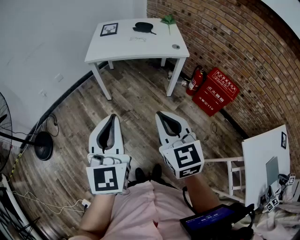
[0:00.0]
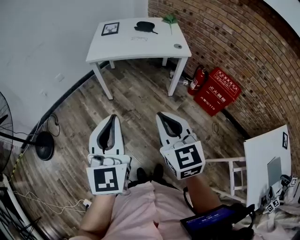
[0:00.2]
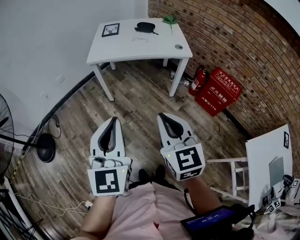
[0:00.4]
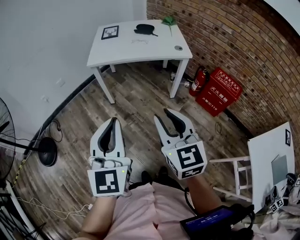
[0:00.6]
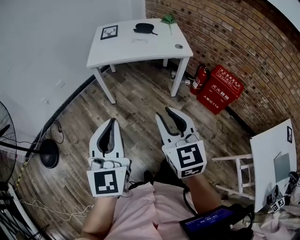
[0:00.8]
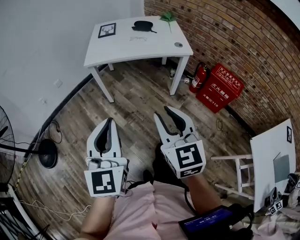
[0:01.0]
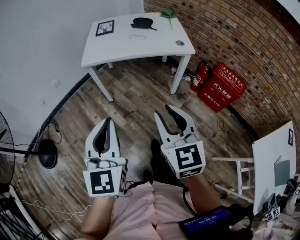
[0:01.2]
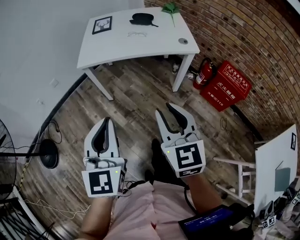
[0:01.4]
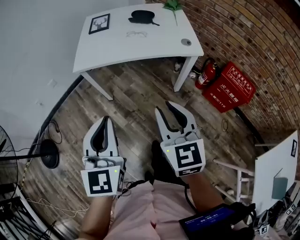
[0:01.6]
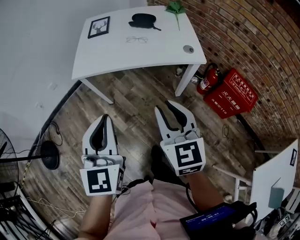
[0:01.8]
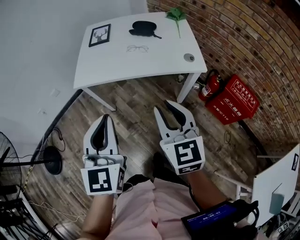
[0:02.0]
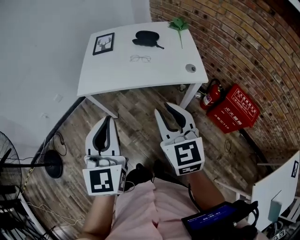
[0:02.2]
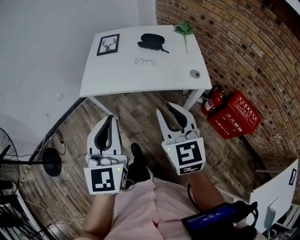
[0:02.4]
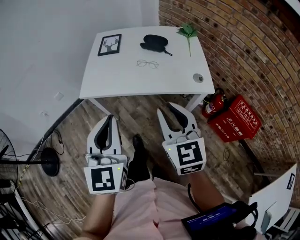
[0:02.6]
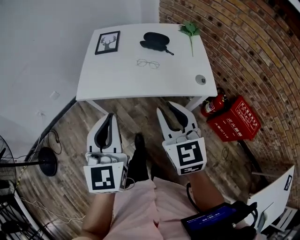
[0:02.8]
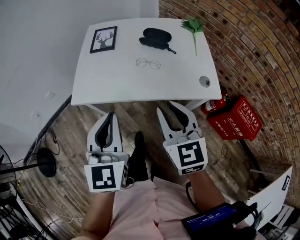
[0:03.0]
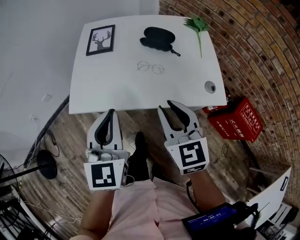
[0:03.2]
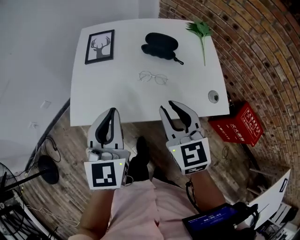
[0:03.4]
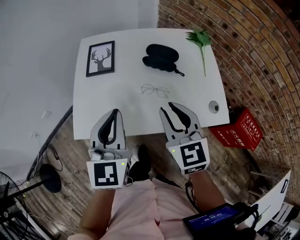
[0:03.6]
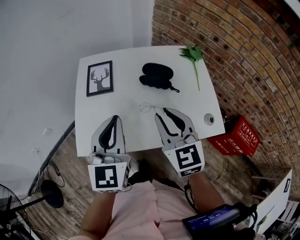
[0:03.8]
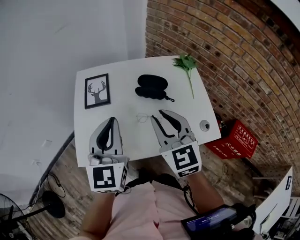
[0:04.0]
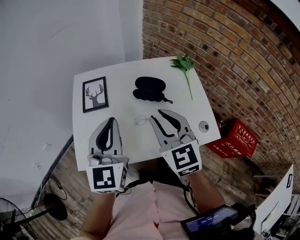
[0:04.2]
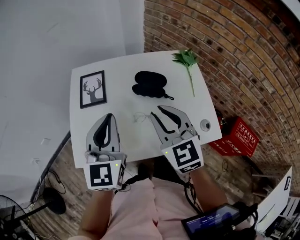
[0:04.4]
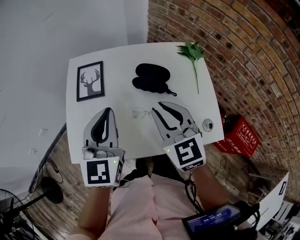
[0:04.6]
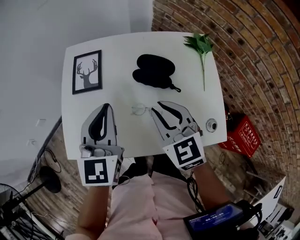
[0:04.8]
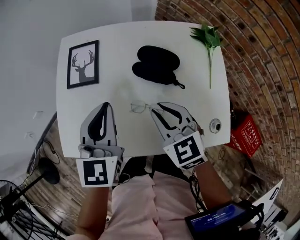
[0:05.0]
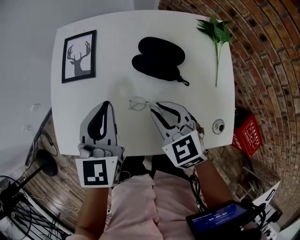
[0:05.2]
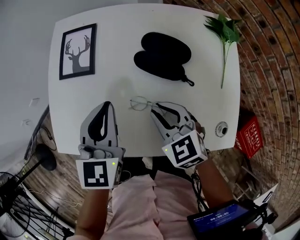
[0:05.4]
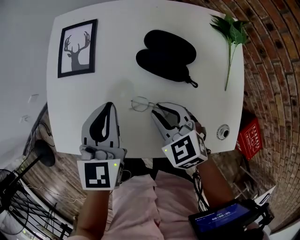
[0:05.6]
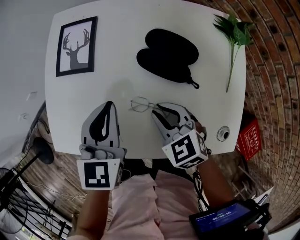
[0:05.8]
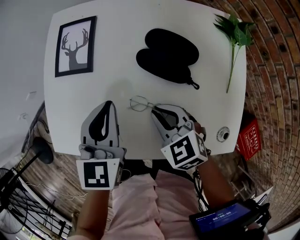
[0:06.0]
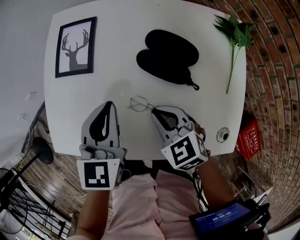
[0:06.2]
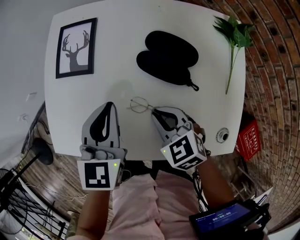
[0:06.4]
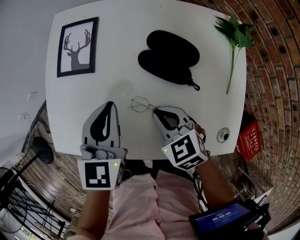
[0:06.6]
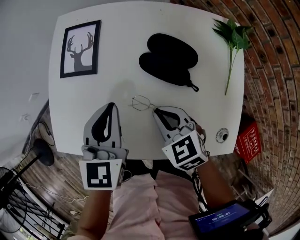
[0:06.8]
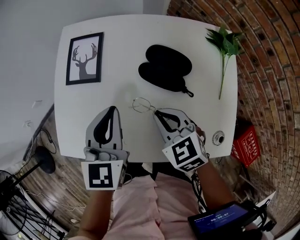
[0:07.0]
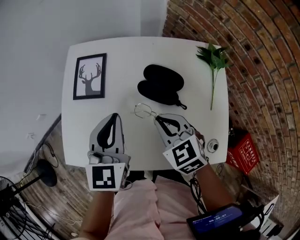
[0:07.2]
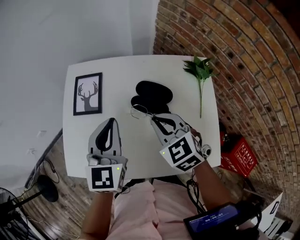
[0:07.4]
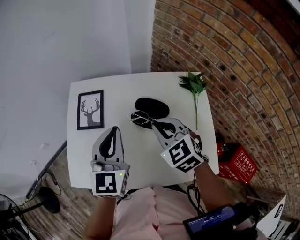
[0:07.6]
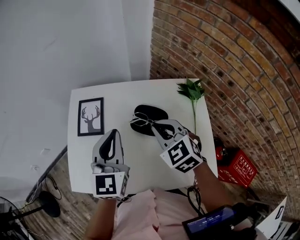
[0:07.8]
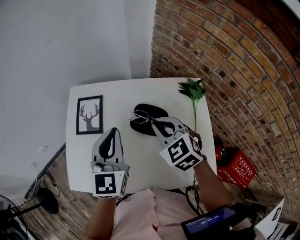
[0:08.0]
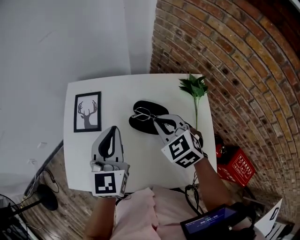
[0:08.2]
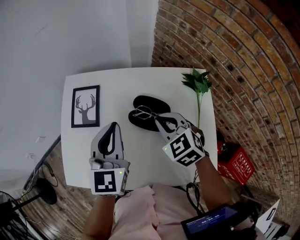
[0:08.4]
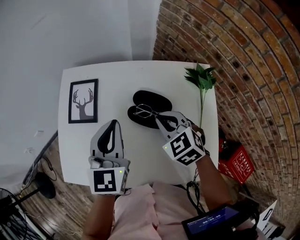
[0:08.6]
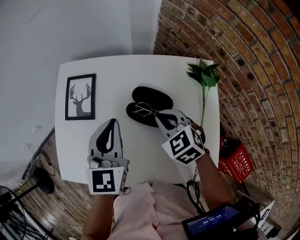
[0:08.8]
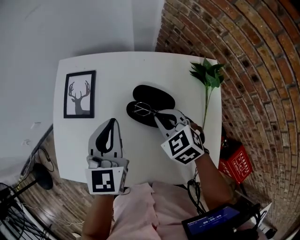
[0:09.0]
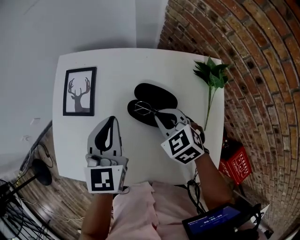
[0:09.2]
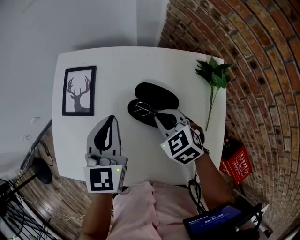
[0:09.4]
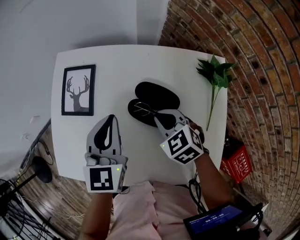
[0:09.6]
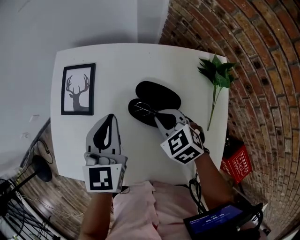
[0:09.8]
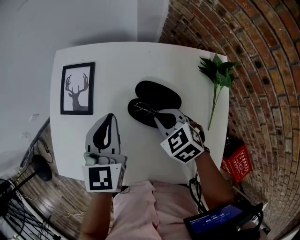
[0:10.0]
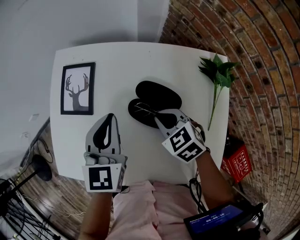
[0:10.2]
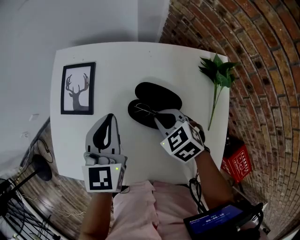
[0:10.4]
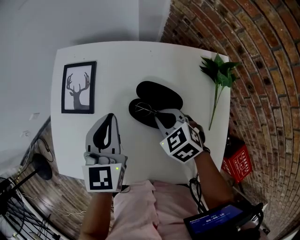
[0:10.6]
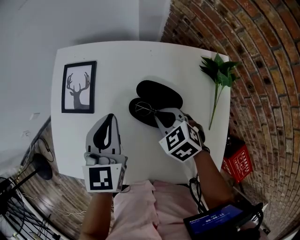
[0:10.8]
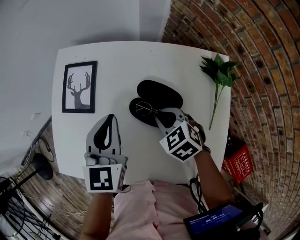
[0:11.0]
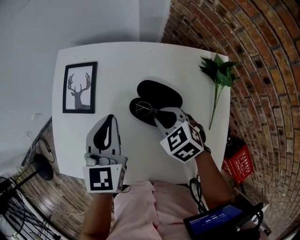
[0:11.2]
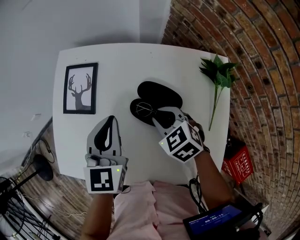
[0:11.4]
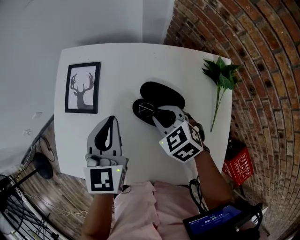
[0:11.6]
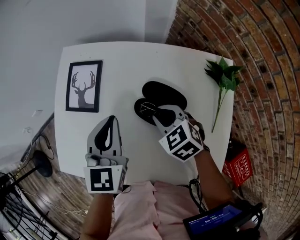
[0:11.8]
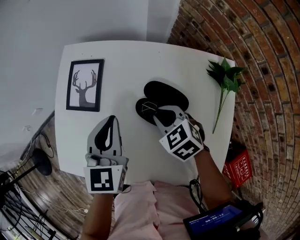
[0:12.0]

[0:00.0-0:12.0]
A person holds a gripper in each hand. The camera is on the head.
0:00.0 to 0:01.6: Both grippers move forward, roughly 20 cm. The right gripper opens its fingers.
0:01.6 to 0:03.0: The grippers both shift forward by approximately 25 cm.
0:03.0 to 0:04.4: Both grippers travel together forward, about 25 cm.
0:04.4 to 0:06.0: The left gripper shifts about 20 cm downward and forward, and rotates approximately 20 degrees. The right gripper goes roughly 25 cm downward, and rotates approximately 40 degrees.
0:06.0 to 0:07.6: The right gripper travels upward and forward by roughly 15 cm; the left gripper shifts about 15 cm upward.
0:07.6 to 0:09.0: The two grippers go some 10 cm downward.
0:09.0 to 0:12.0: The grippers stay close to where they were, moving slightly.

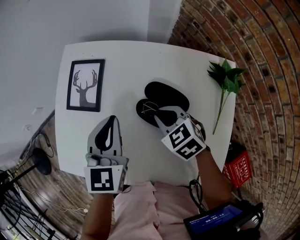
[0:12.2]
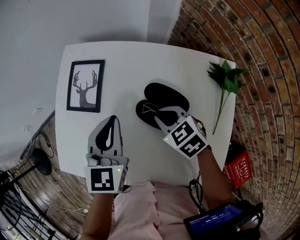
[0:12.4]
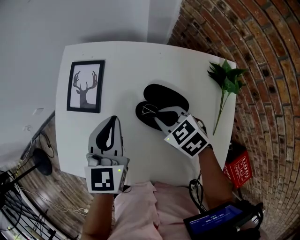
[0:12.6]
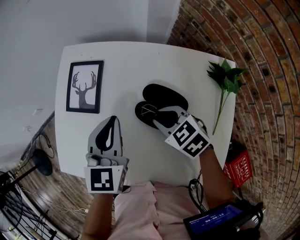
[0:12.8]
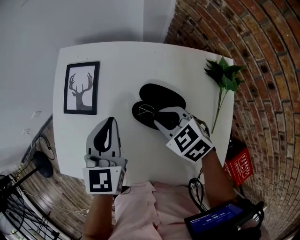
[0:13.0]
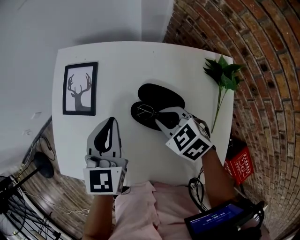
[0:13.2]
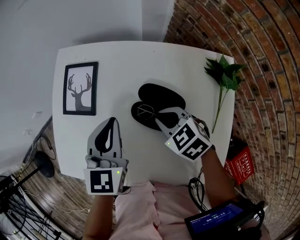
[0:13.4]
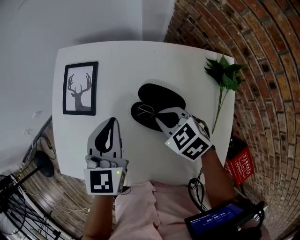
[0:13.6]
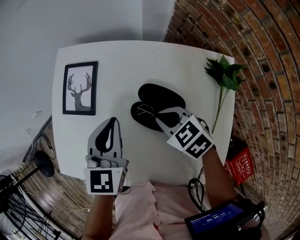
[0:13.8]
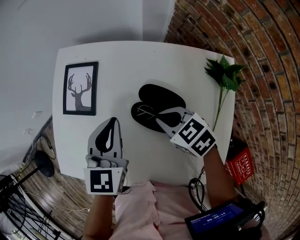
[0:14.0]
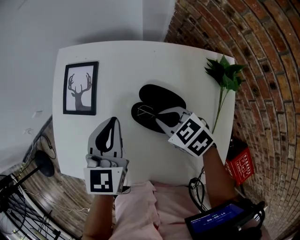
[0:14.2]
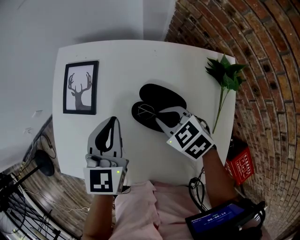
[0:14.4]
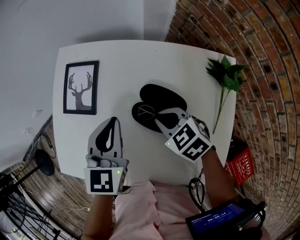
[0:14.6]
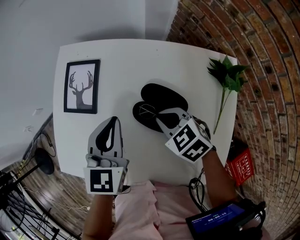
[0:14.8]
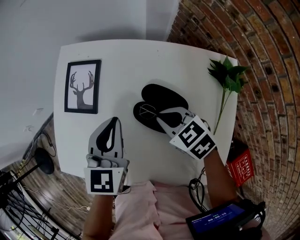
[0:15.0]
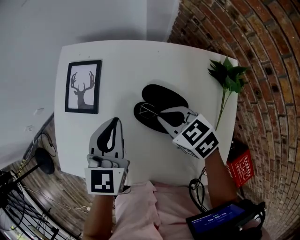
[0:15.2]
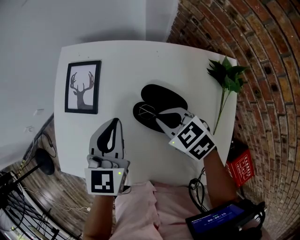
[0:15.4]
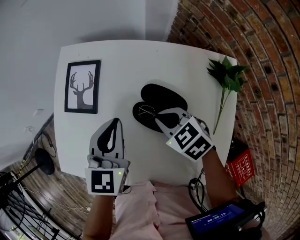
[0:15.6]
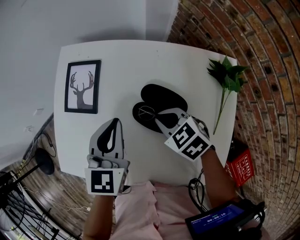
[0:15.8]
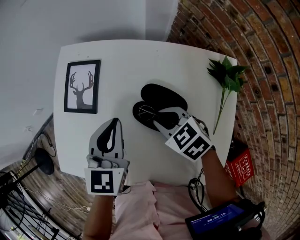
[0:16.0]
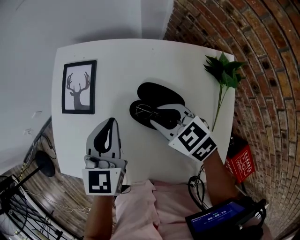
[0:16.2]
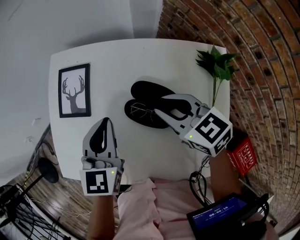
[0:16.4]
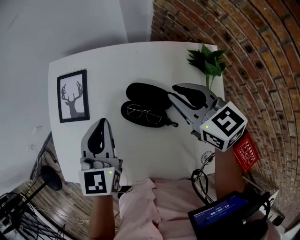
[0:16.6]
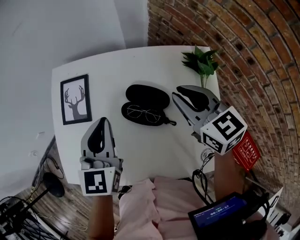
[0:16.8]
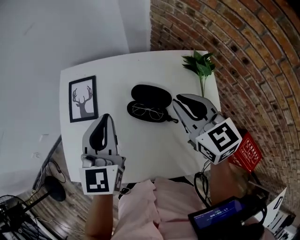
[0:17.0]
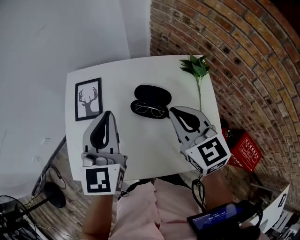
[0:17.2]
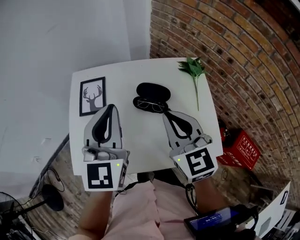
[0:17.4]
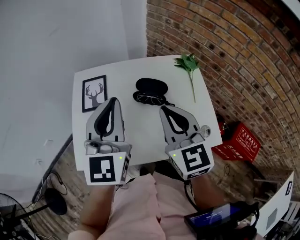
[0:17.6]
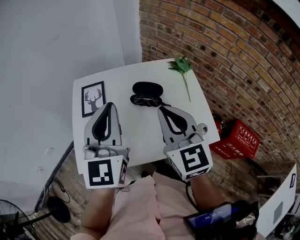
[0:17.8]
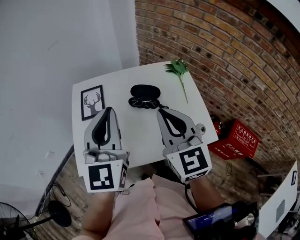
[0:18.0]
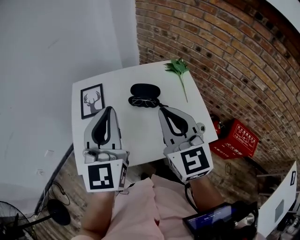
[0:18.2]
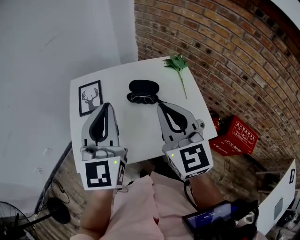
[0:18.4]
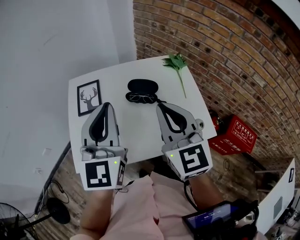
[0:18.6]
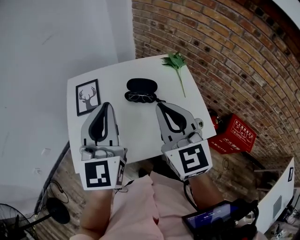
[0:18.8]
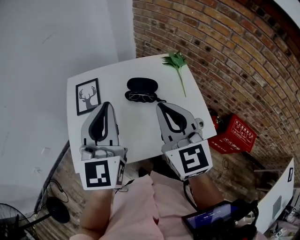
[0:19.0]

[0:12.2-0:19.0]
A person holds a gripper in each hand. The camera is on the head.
0:12.2 to 0:15.0: The grippers move only a little.
0:15.0 to 0:16.2: The right gripper opens.
0:16.2 to 0:17.6: The grippers both shift upward by some 20 cm. The left gripper changes its angle by approximately 30 degrees. Meanwhile the right gripper tips its fingers upward by about 30 degrees, and closes up.
0:17.6 to 0:19.0: The grippers make only small movements.

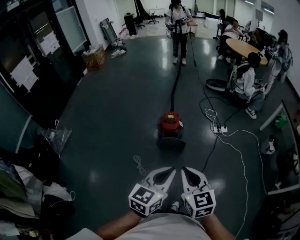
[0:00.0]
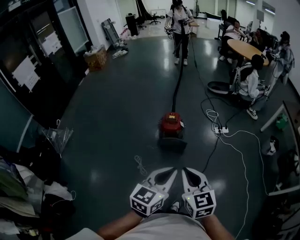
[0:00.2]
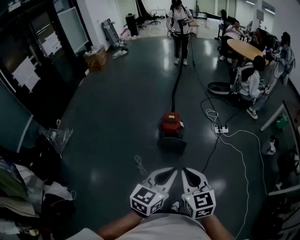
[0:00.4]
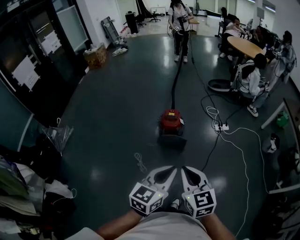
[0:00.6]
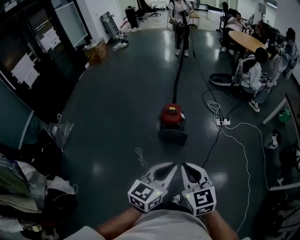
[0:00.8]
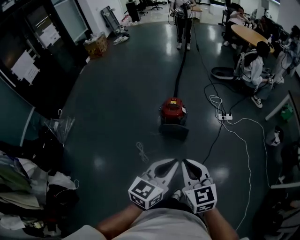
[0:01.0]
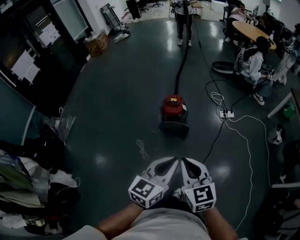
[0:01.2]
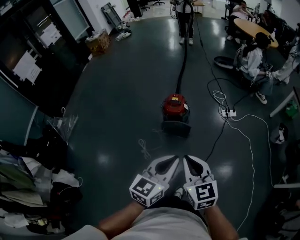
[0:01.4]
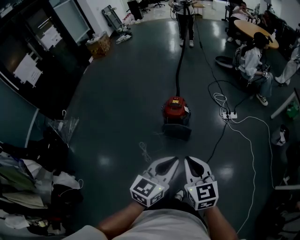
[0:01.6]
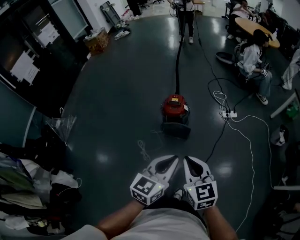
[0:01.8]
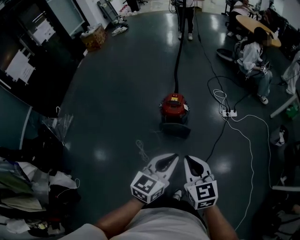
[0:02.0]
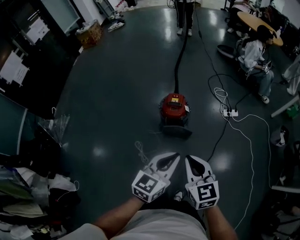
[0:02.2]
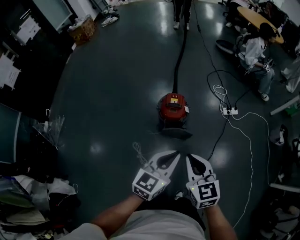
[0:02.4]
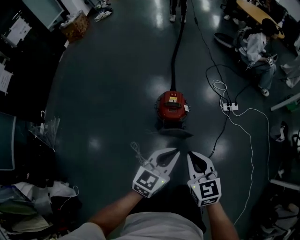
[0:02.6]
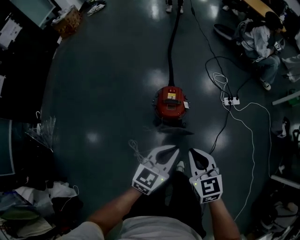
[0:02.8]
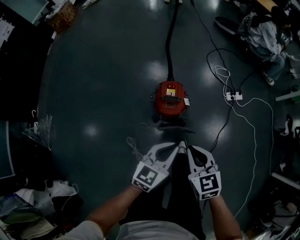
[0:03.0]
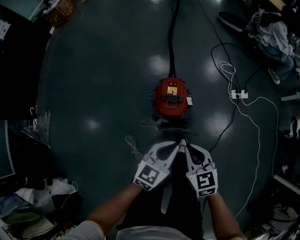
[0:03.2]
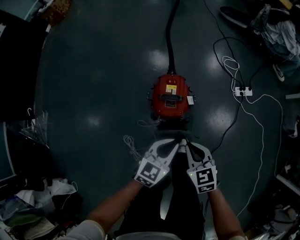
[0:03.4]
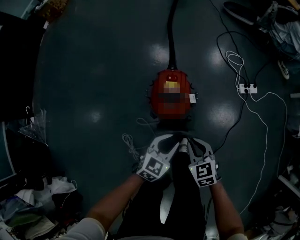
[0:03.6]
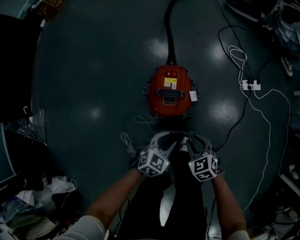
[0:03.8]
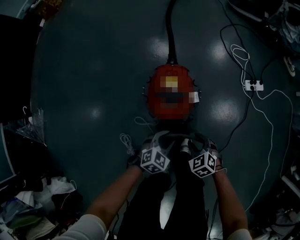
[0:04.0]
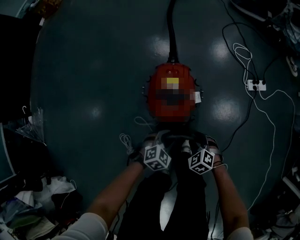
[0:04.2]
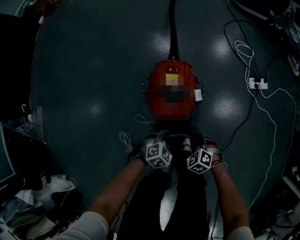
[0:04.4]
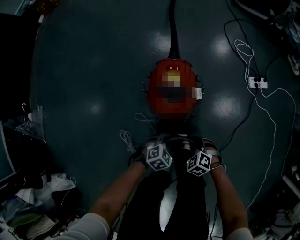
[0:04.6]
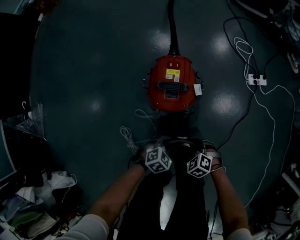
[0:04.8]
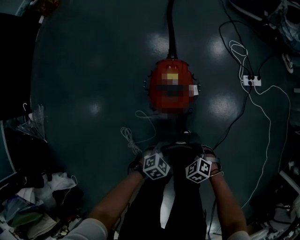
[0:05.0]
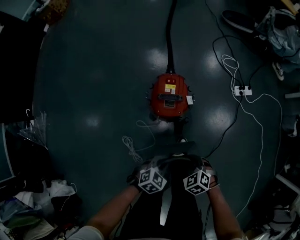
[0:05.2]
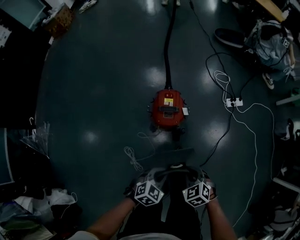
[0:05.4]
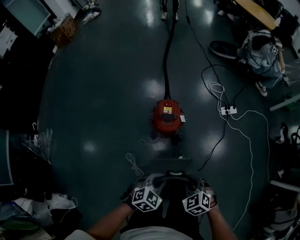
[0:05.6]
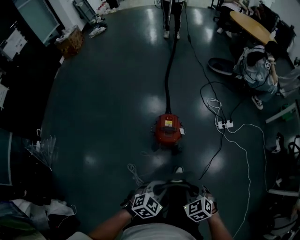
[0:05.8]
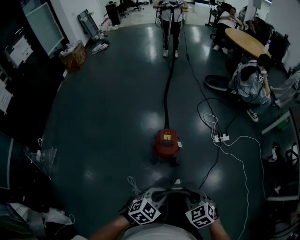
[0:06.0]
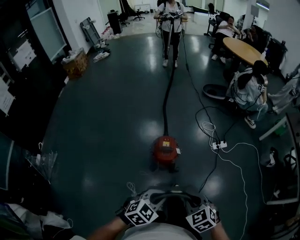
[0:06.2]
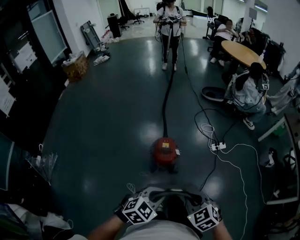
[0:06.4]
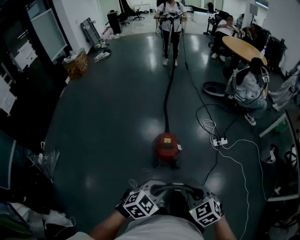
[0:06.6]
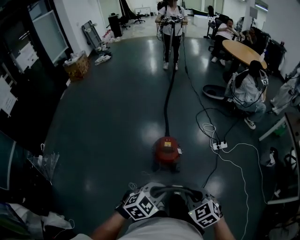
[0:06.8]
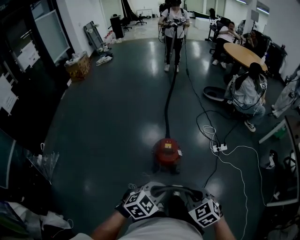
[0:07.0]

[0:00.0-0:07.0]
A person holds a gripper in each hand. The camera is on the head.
0:00.0 to 0:01.4: The left gripper shifts by about 5 cm; the right gripper moves approximately 5 cm.
0:01.4 to 0:02.8: The two grippers go about 35 cm forward and downward.
0:02.8 to 0:04.2: Both grippers travel together downward, approximately 50 cm. The left gripper tips its fingers downward by roughly 40 degrees, and opens up. The right gripper points its fingers approximately 30 degrees further downward, and opens.
0:04.2 to 0:05.6: Both grippers travel together upward, roughly 40 cm. The left gripper closes up; the right gripper closes its fingers.
0:05.6 to 0:07.0: The grippers both shift upward by about 25 cm.
